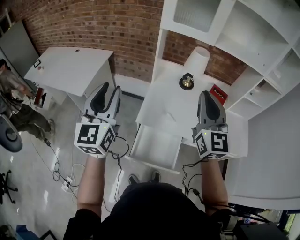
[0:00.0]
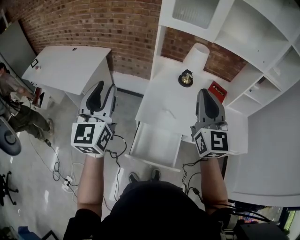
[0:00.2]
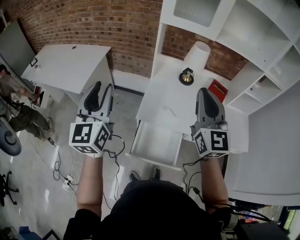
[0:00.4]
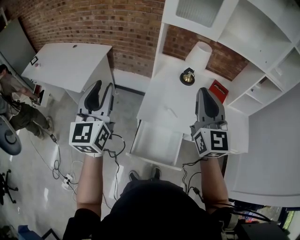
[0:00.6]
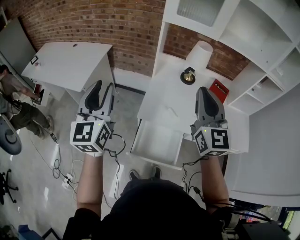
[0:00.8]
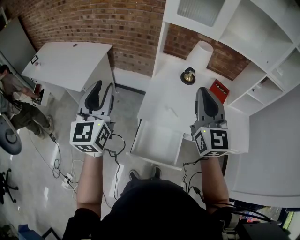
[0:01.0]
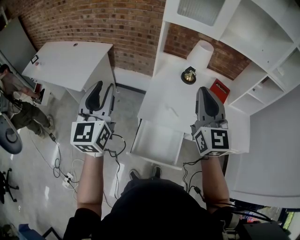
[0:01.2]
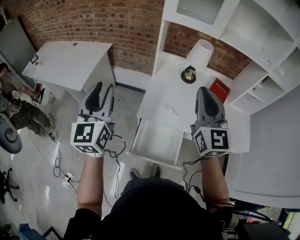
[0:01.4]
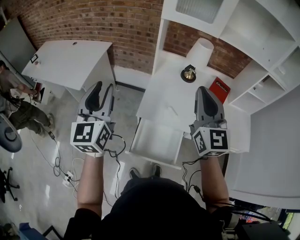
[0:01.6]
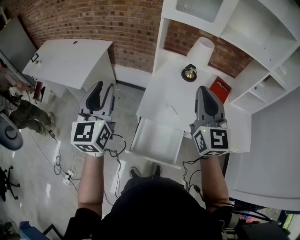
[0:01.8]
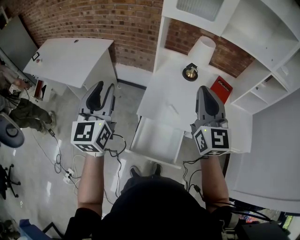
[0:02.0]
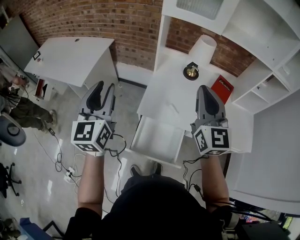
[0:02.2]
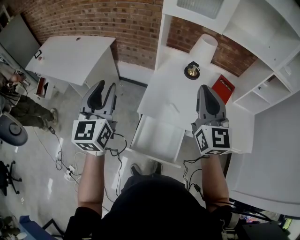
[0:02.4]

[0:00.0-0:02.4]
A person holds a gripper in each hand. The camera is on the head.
0:00.0 to 0:02.4: The grippers stay close to where they were, moving slightly.

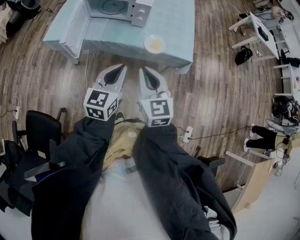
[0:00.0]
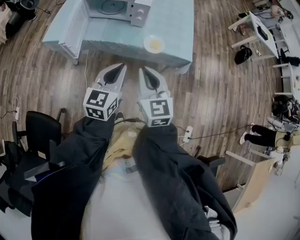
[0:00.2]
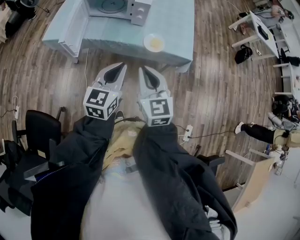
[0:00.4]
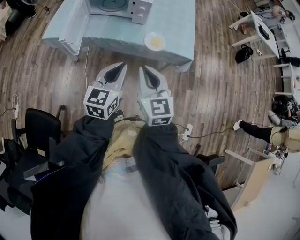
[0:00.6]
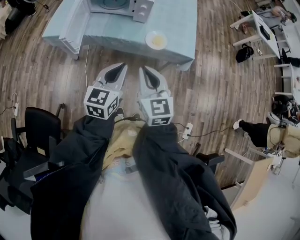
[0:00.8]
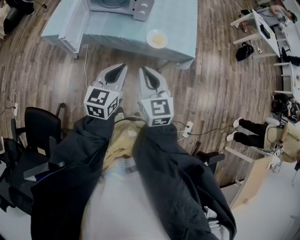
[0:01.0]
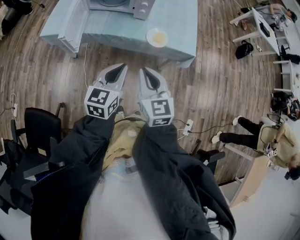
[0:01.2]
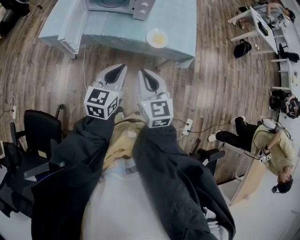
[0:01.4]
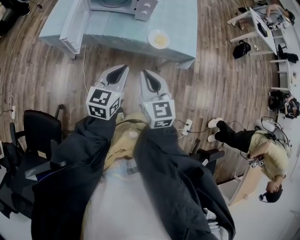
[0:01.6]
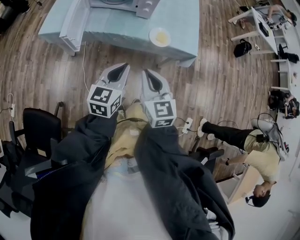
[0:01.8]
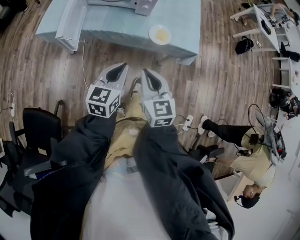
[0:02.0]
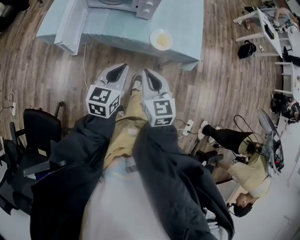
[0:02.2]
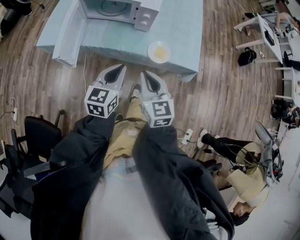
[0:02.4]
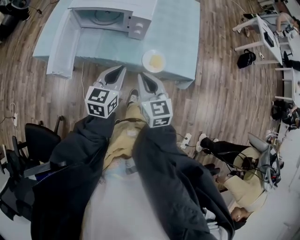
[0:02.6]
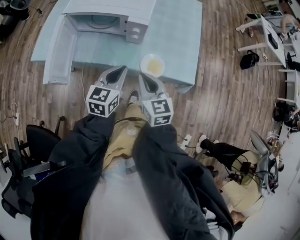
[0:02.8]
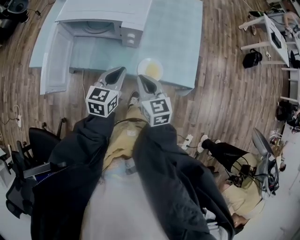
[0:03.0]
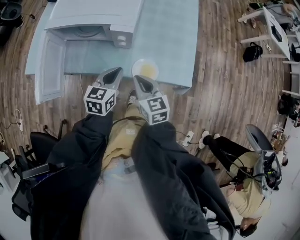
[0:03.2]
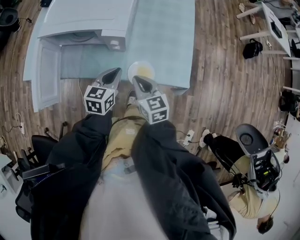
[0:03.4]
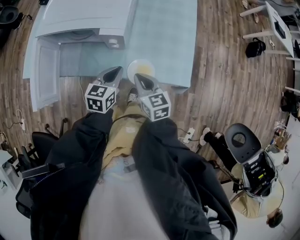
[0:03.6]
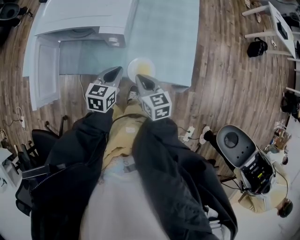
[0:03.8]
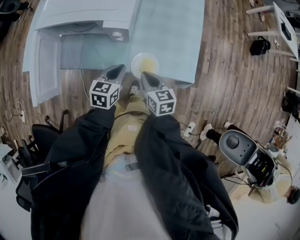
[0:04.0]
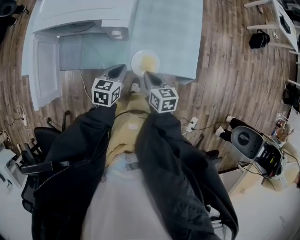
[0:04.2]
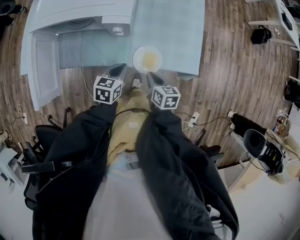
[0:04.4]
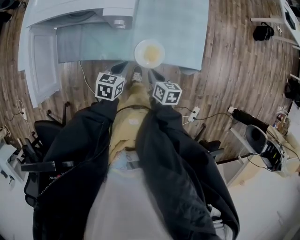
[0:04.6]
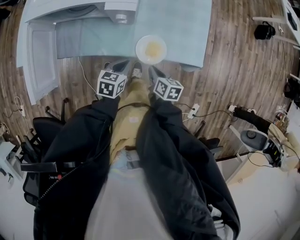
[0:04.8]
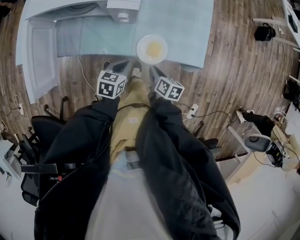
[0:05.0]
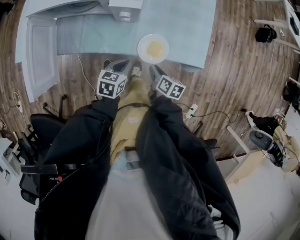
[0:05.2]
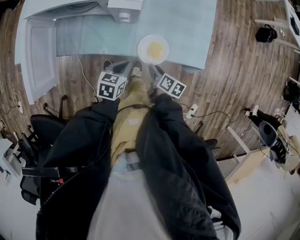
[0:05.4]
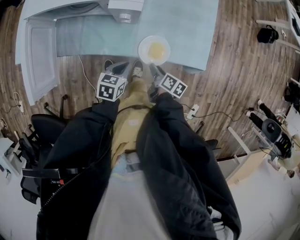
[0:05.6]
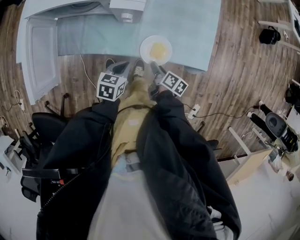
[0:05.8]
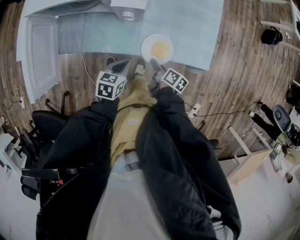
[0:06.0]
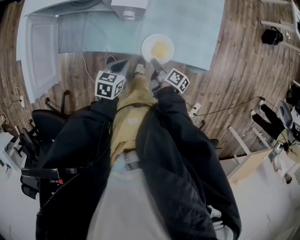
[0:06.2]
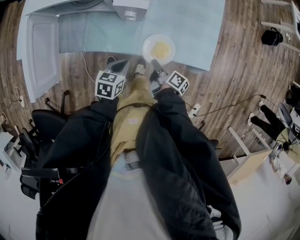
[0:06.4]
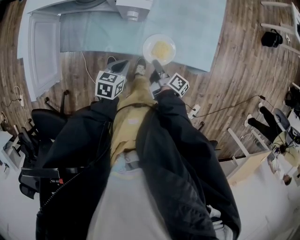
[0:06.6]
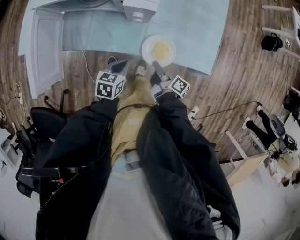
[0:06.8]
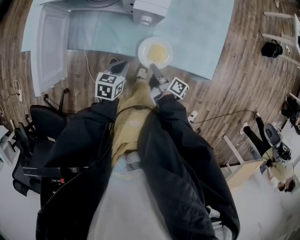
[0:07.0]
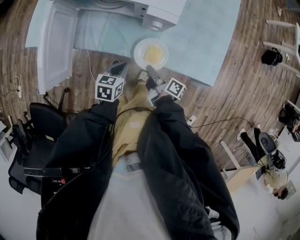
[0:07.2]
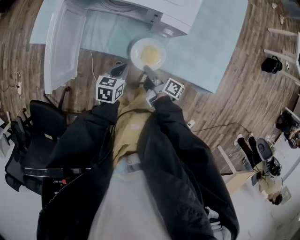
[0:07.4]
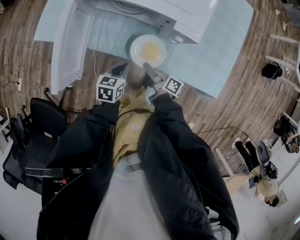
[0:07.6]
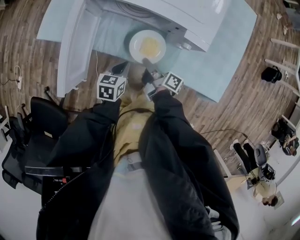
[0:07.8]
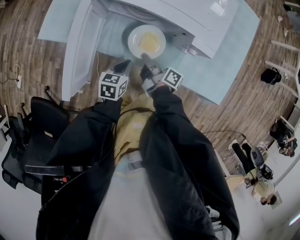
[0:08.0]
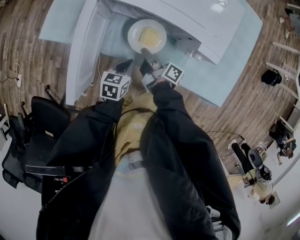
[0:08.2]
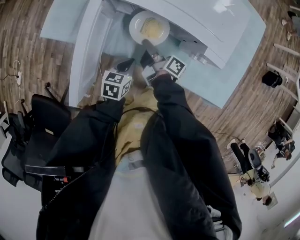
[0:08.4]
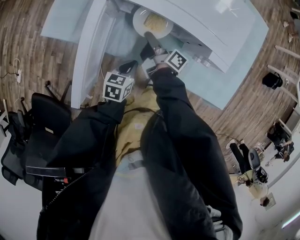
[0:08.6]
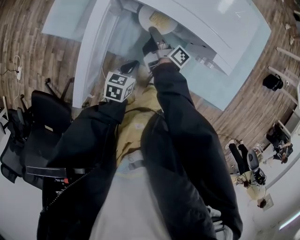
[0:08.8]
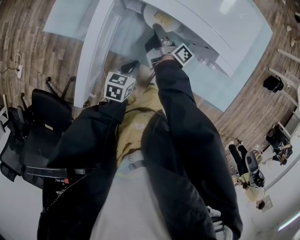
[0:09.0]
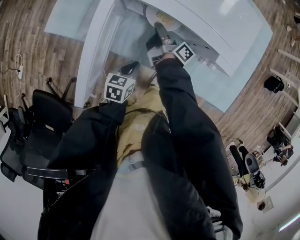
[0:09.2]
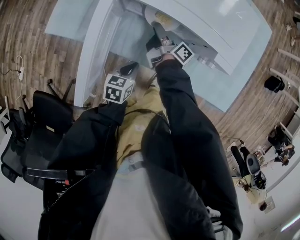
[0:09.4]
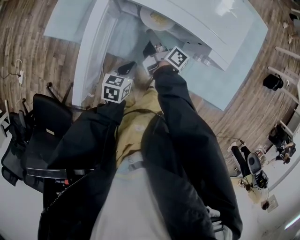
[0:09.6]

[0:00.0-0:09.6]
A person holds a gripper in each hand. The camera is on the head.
0:00.0 to 0:01.6: The grippers stay close to where they were, moving slightly.
0:01.6 to 0:03.2: The right gripper heads forward and downward, covering approximately 30 cm. The left gripper goes some 25 cm forward.
0:03.2 to 0:04.8: The two grippers go some 15 cm downward. The right gripper swivels approximately 40 degrees. Meanwhile the left gripper turns by roughly 20 degrees.
0:04.8 to 0:06.4: The right gripper moves about 5 cm, rotates some 40 degrees, and opens, then closes again.
0:06.4 to 0:08.0: Both grippers travel together to the left and forward, some 25 cm. The right gripper changes its angle by roughly 20 degrees.
0:08.0 to 0:09.6: The right gripper shifts about 15 cm forward and to the left, and opens its fingers.

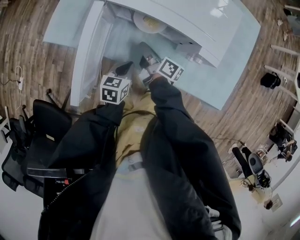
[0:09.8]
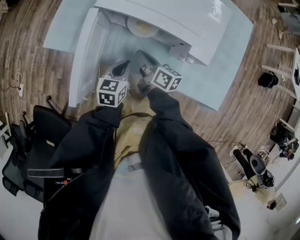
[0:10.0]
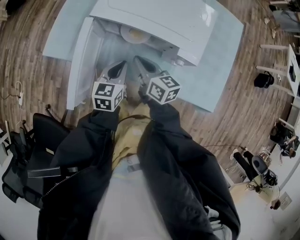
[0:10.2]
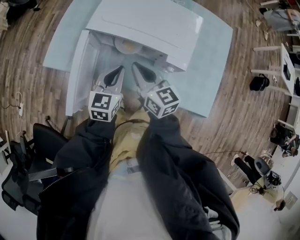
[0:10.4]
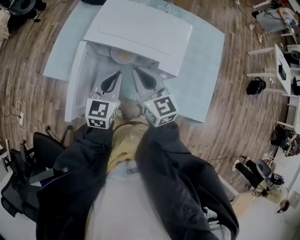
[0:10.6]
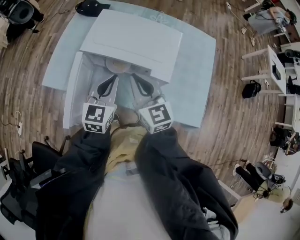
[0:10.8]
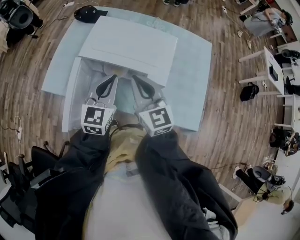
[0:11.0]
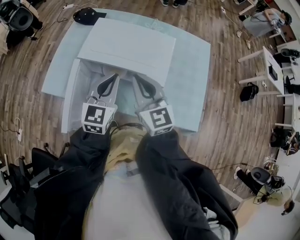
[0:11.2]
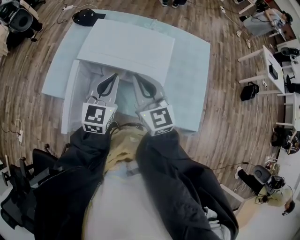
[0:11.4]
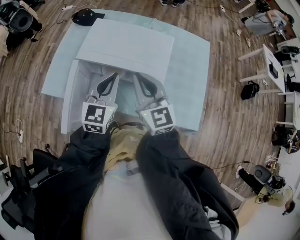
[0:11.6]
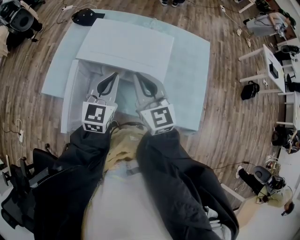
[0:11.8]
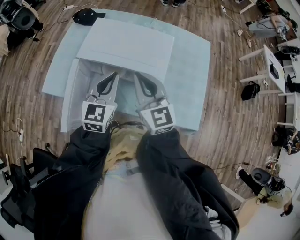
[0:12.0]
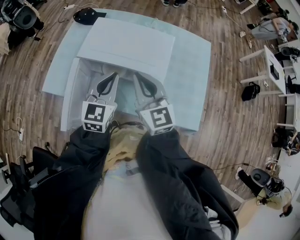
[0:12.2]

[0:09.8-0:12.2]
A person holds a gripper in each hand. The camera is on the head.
0:09.8 to 0:11.0: The two grippers go some 30 cm upward. The left gripper swivels some 40 degrees. The right gripper rolls counterclockwise, seen from behind, by some 70 degrees.
0:11.0 to 0:12.2: The grippers make only small movements.

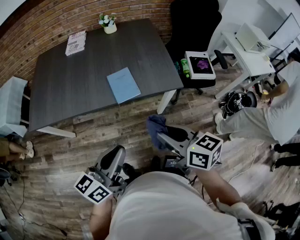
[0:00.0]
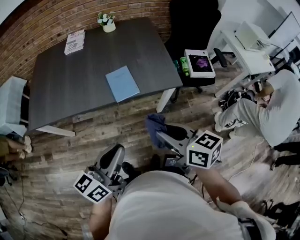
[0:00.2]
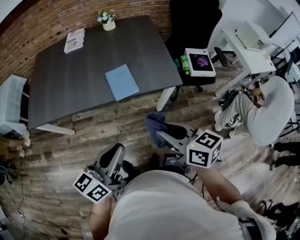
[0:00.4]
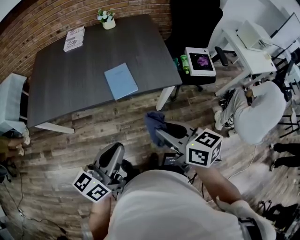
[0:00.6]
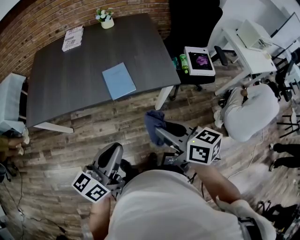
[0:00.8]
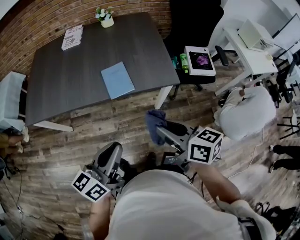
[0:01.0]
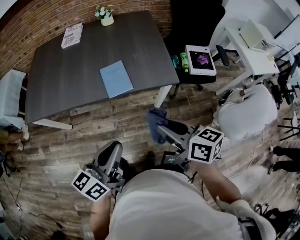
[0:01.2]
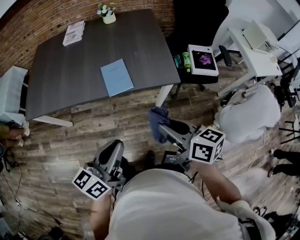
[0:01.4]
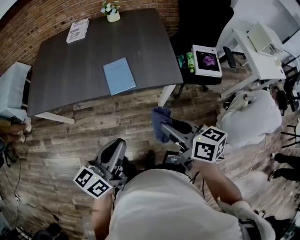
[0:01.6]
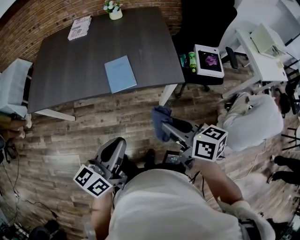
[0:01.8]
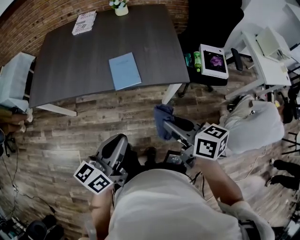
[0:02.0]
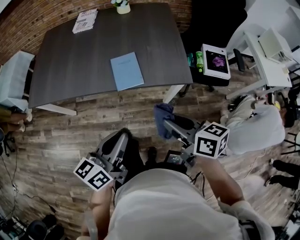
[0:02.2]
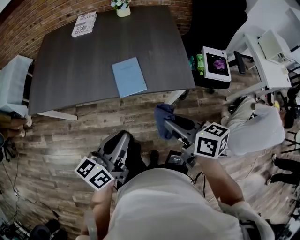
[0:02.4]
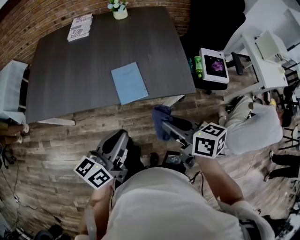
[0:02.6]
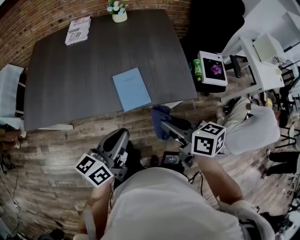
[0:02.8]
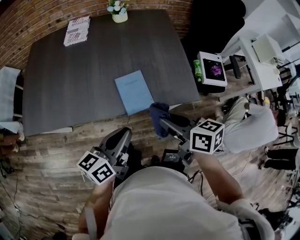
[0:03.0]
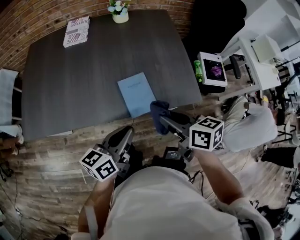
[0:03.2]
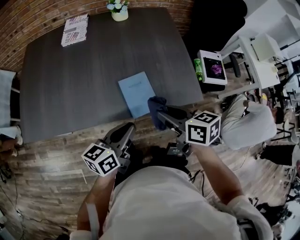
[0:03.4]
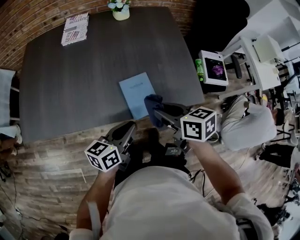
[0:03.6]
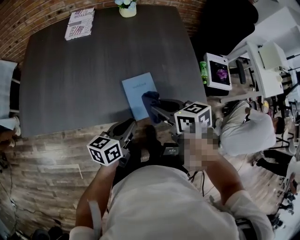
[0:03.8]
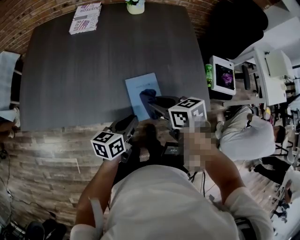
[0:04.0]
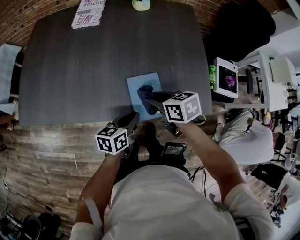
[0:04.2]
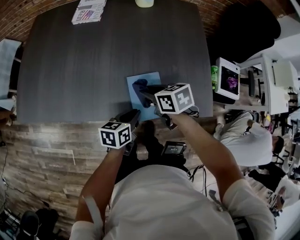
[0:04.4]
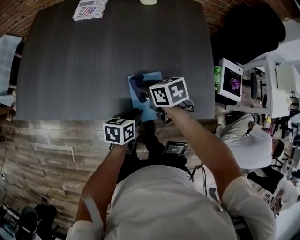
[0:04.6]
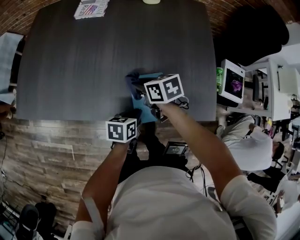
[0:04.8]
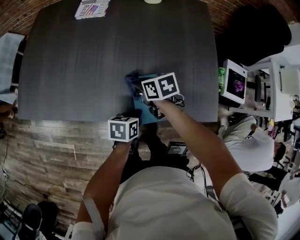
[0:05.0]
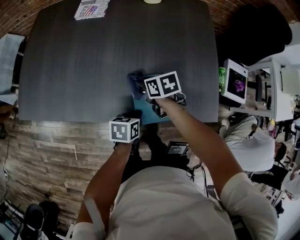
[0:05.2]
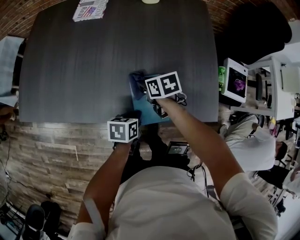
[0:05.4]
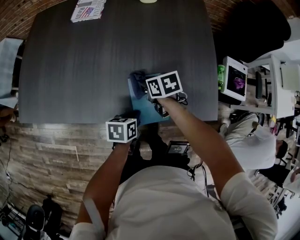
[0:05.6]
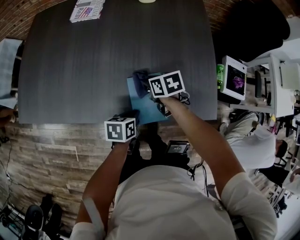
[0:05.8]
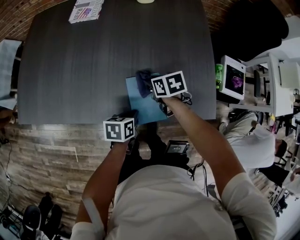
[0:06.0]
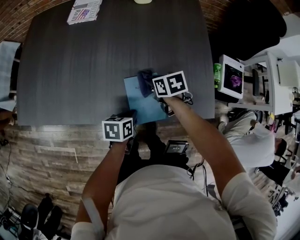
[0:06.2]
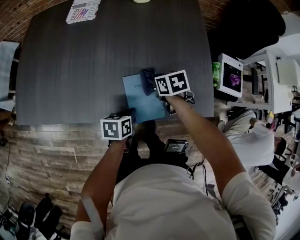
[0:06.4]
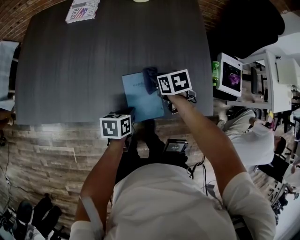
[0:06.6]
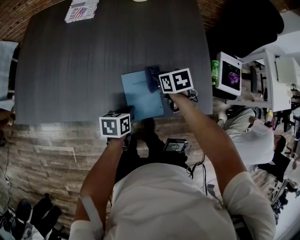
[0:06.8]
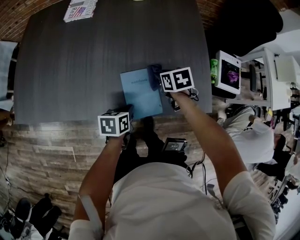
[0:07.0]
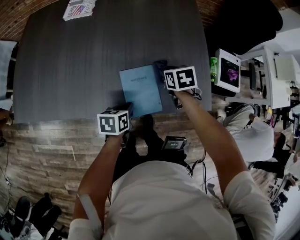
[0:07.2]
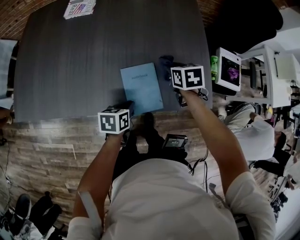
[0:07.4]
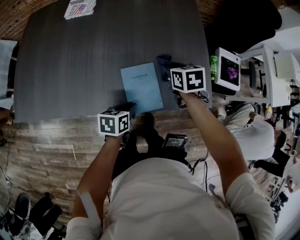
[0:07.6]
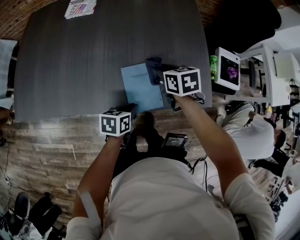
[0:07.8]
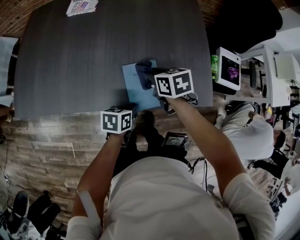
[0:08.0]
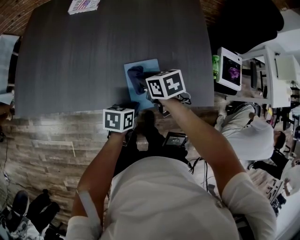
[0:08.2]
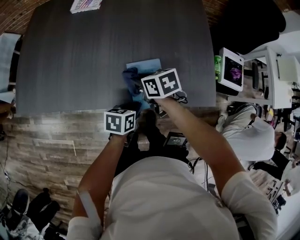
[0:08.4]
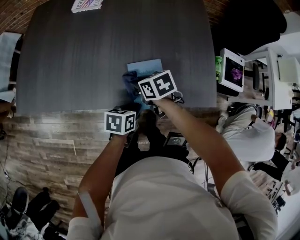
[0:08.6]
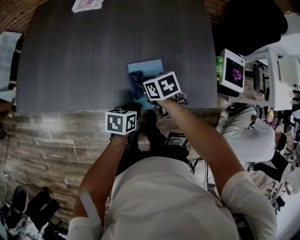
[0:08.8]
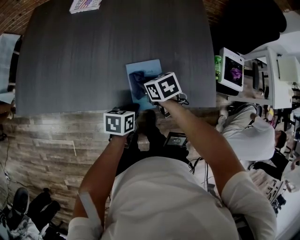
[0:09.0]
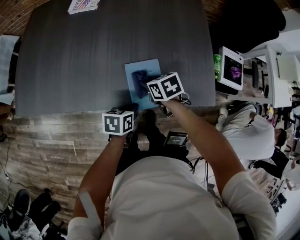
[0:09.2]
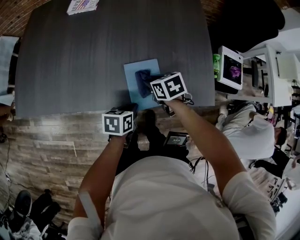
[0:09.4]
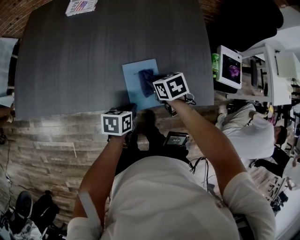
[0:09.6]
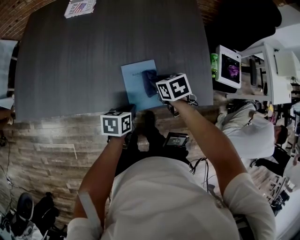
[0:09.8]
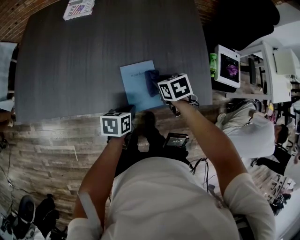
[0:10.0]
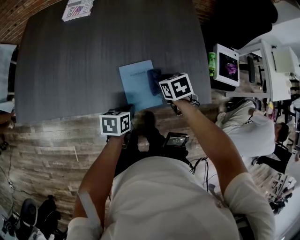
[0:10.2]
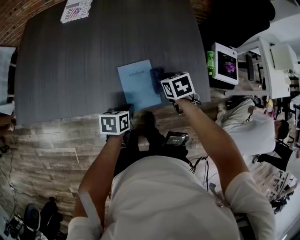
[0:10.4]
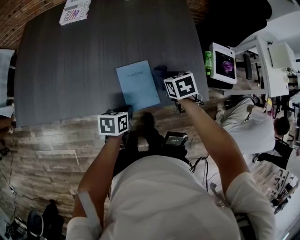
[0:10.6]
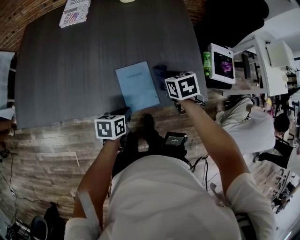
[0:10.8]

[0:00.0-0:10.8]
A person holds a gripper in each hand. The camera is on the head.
0:00.0 to 0:01.6: The grippers both shift to the right by about 5 cm.
0:01.6 to 0:03.0: The right gripper heads forward and to the left, covering roughly 20 cm; the left gripper is displaced forward by roughly 20 cm.
0:03.0 to 0:04.6: The left gripper travels downward and forward by some 25 cm, and tips its fingers downward by roughly 30 degrees. The right gripper moves forward, downward and to the left, roughly 30 cm, and turns by some 30 degrees.
0:04.6 to 0:06.2: The right gripper moves to the right, approximately 5 cm.
0:06.2 to 0:07.8: The right gripper heads upward, covering approximately 5 cm.
0:07.8 to 0:09.2: The right gripper travels downward, to the left and backward by about 10 cm.
0:09.2 to 0:10.8: The right gripper is displaced to the right and upward by some 10 cm.
